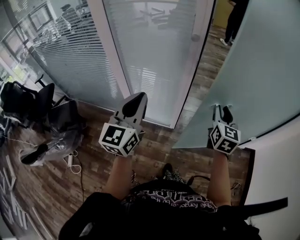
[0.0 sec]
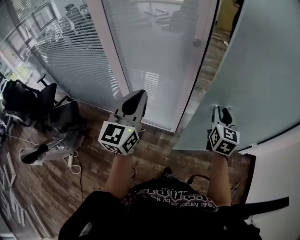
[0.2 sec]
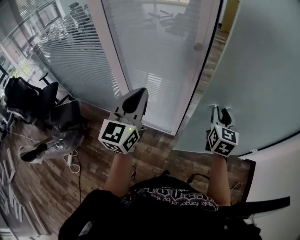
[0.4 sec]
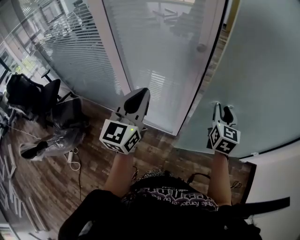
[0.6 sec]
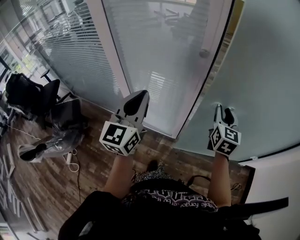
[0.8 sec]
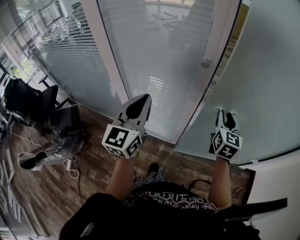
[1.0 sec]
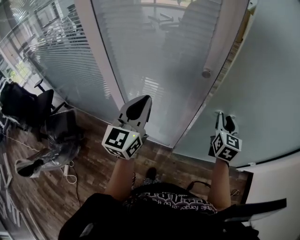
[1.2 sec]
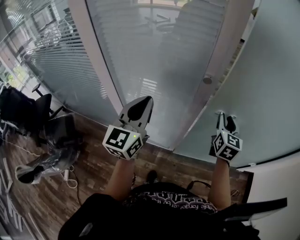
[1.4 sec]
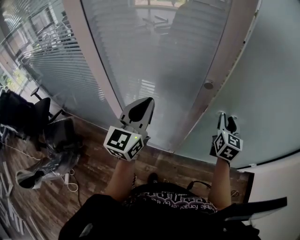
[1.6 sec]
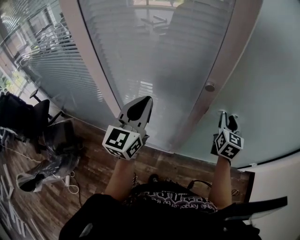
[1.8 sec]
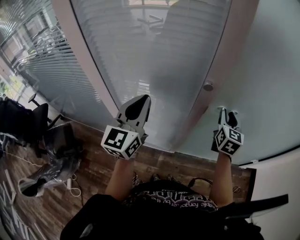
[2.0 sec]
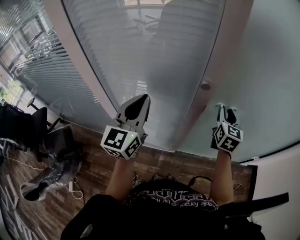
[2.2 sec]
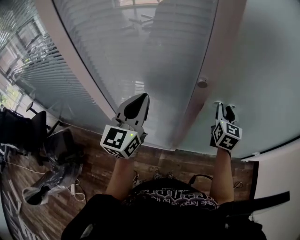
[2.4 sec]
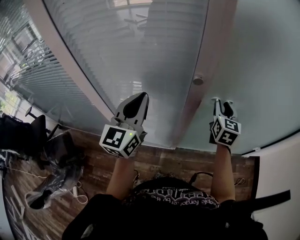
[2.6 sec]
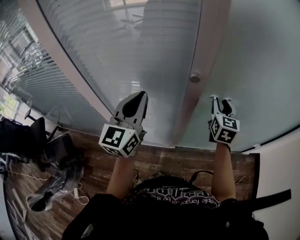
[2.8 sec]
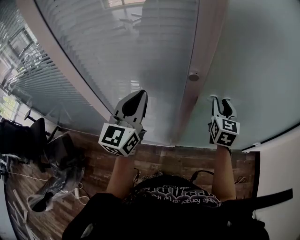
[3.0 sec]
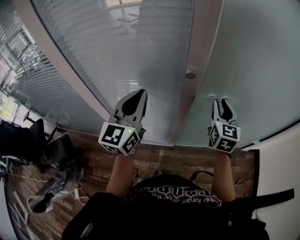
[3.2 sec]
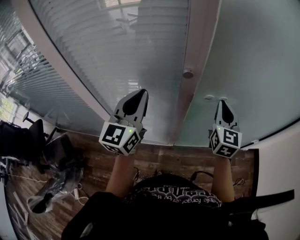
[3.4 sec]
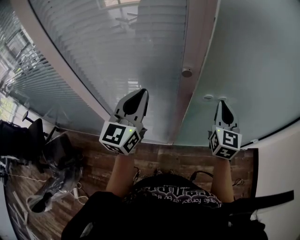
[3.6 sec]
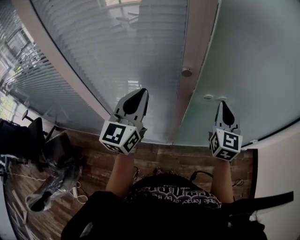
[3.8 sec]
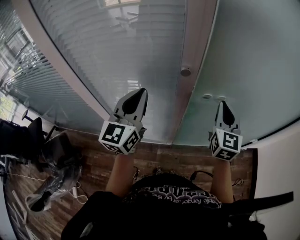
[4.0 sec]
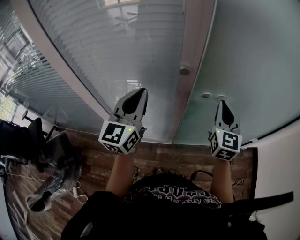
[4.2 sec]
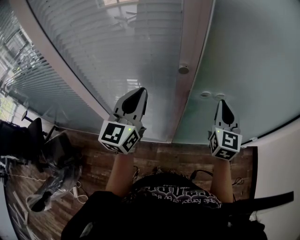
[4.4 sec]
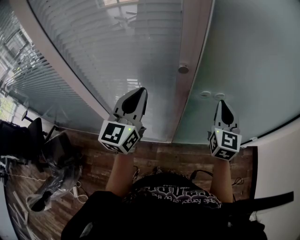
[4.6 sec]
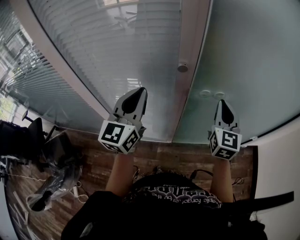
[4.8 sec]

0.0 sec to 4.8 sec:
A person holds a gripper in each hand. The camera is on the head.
0.0 sec to 1.6 sec: The two grippers go approximately 20 cm forward.
1.6 sec to 3.2 sec: The left gripper moves about 5 cm.
3.2 sec to 4.8 sec: The right gripper changes place by about 5 cm, and closes up.

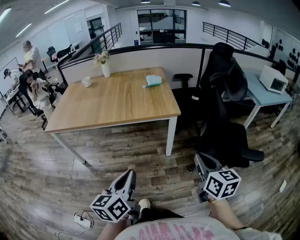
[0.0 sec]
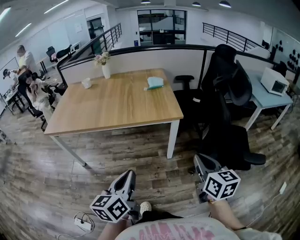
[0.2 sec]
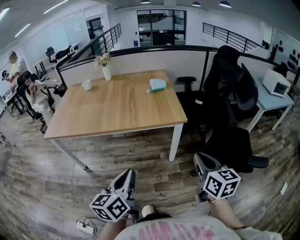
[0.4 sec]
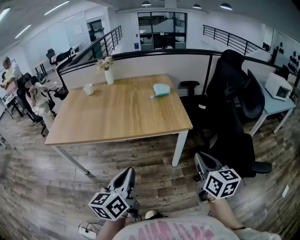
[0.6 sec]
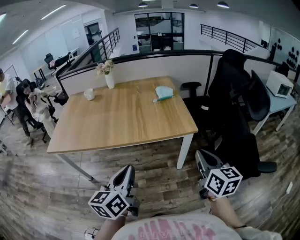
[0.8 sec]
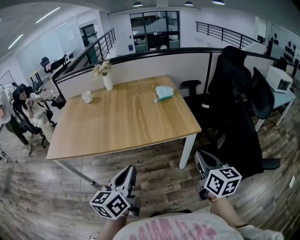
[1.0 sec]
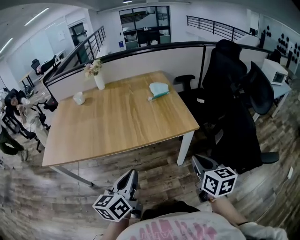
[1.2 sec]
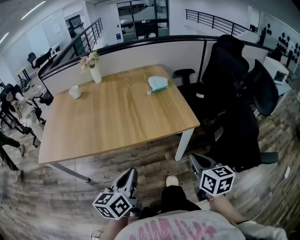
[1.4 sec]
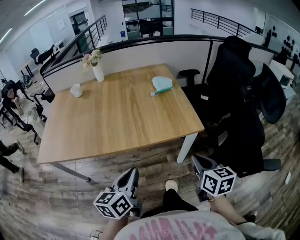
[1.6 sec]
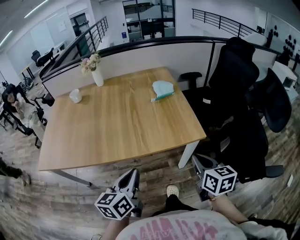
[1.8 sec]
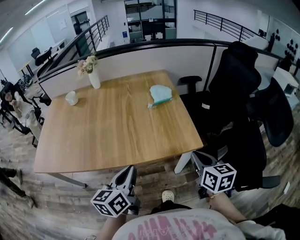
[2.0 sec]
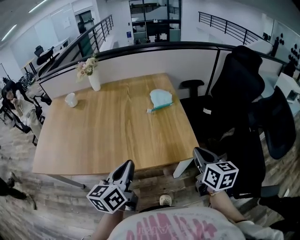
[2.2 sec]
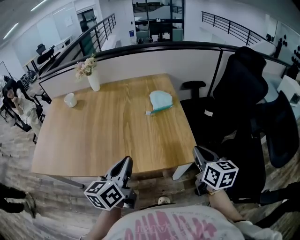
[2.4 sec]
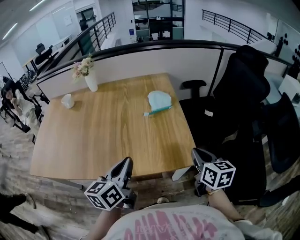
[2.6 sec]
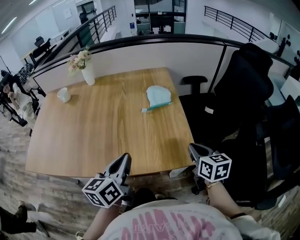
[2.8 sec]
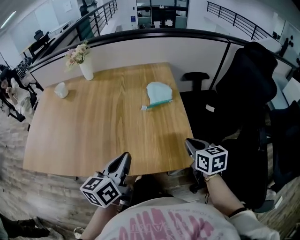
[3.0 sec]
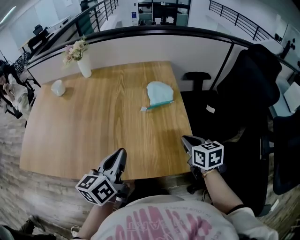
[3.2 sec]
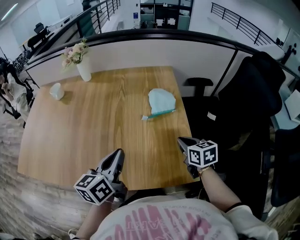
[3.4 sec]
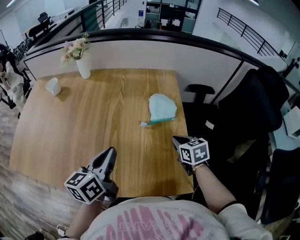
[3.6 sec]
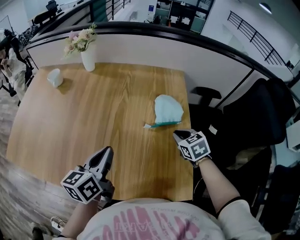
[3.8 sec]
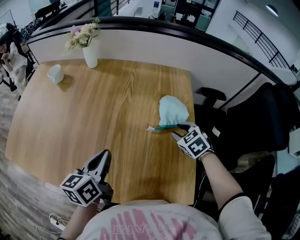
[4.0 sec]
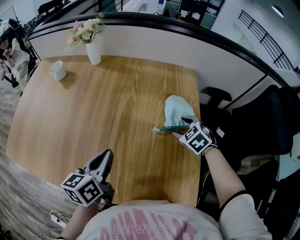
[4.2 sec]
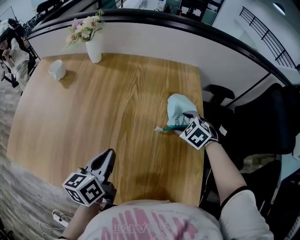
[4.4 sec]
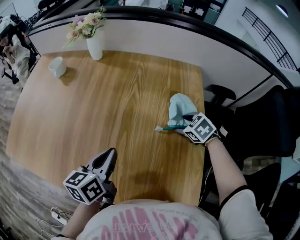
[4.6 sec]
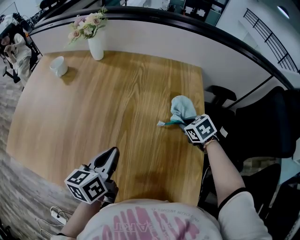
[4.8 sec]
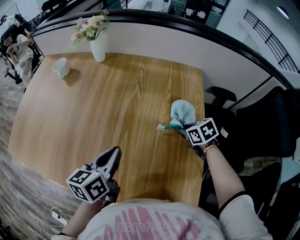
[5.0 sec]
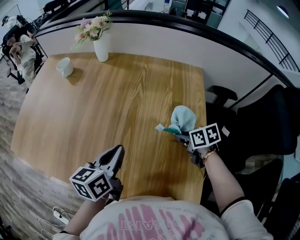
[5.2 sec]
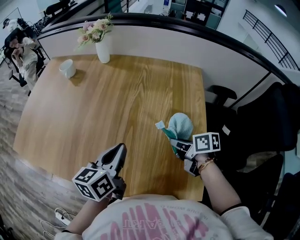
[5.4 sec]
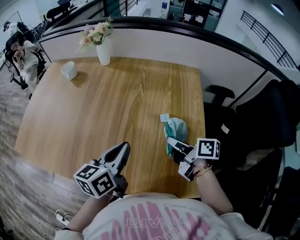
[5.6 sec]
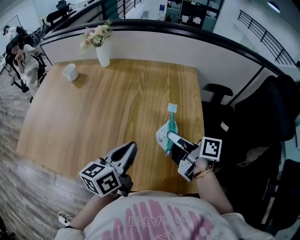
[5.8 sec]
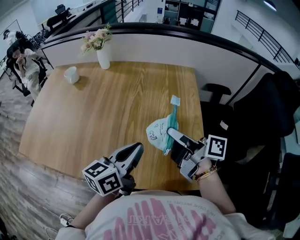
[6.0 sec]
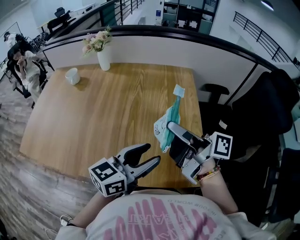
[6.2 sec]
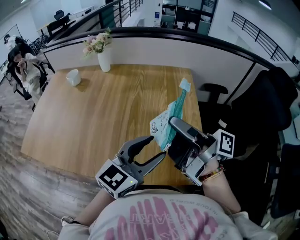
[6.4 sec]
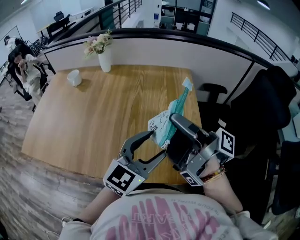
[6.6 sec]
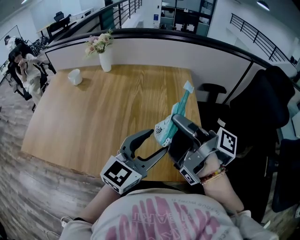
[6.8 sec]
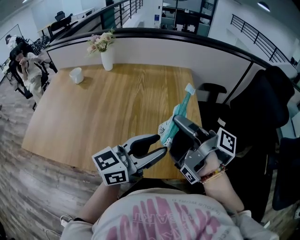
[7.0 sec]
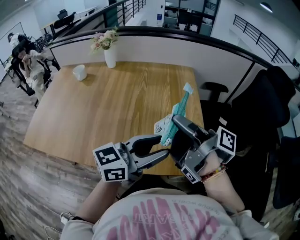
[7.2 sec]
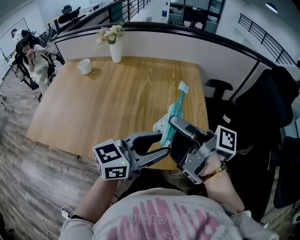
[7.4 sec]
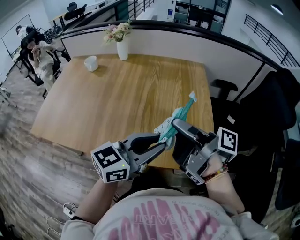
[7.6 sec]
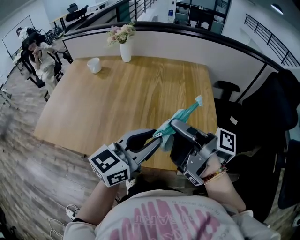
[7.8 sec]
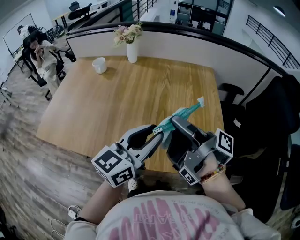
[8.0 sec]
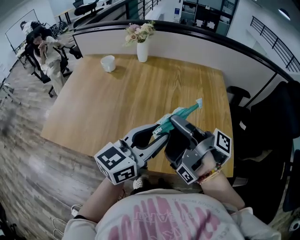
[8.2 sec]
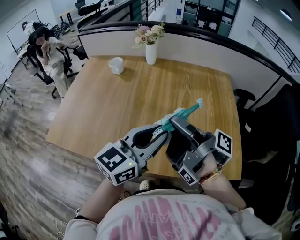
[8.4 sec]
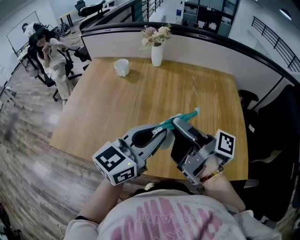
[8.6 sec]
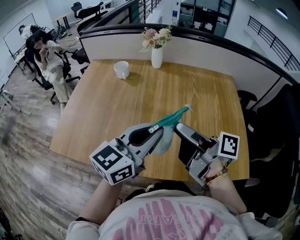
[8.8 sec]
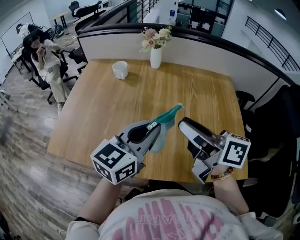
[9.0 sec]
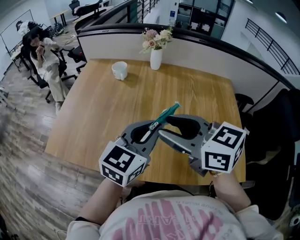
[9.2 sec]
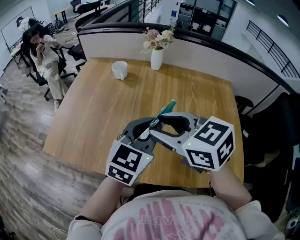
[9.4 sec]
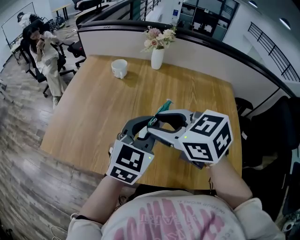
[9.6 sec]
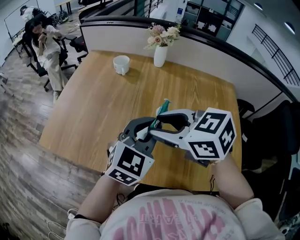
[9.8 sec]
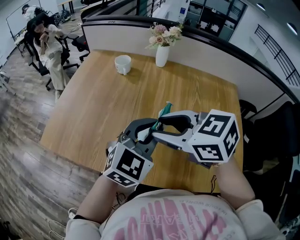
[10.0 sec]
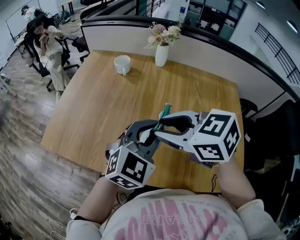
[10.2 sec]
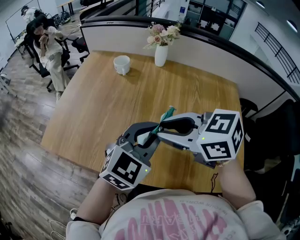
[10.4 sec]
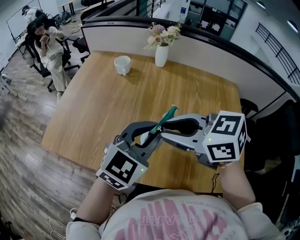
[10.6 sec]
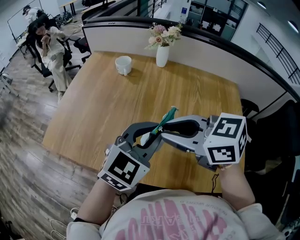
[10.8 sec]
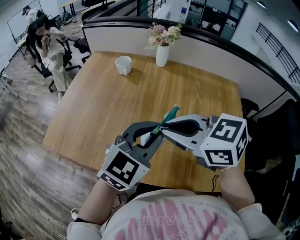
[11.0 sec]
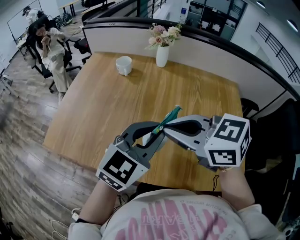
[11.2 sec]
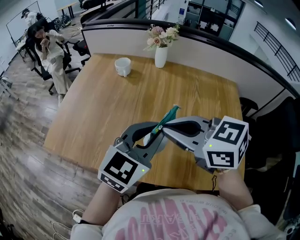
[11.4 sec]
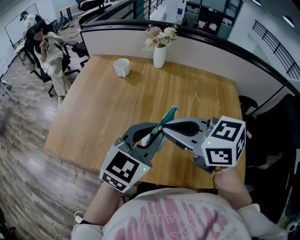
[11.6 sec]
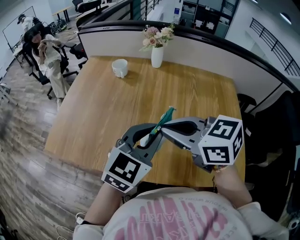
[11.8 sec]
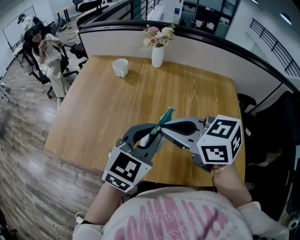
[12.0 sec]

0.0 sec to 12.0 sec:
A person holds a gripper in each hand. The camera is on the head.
0.0 sec to 1.6 sec: The grippers both shift forward and to the left by approximately 30 cm.
1.6 sec to 3.0 sec: The two grippers go some 25 cm forward.
3.0 sec to 4.4 sec: The left gripper is displaced forward and to the left by approximately 20 cm, while the right gripper goes about 30 cm forward, rotates around the line of its fingers by some 60 degrees, counterclockwise from behind, and opens.
4.4 sec to 6.0 sec: The left gripper heads backward, to the right and upward, covering roughly 15 cm, and swivels approximately 20 degrees, while the right gripper shifts some 25 cm upward, backward and to the left, points its fingers approximately 60 degrees further upward, and closes up.
6.0 sec to 7.6 sec: The two grippers go about 10 cm backward and upward. The left gripper swivels about 30 degrees, and opens.
7.6 sec to 9.0 sec: The right gripper travels to the left by roughly 25 cm, rotates around the line of its fingers by roughly 40 degrees, counterclockwise from behind, and opens. Meanwhile the left gripper travels to the left and forward by about 30 cm.
9.0 sec to 10.4 sec: The left gripper turns by about 30 degrees. Meanwhile the right gripper travels to the left by approximately 5 cm, and points its fingers about 30 degrees further downward.
10.4 sec to 12.0 sec: The right gripper closes its fingers.

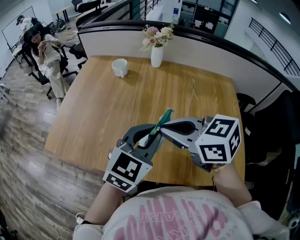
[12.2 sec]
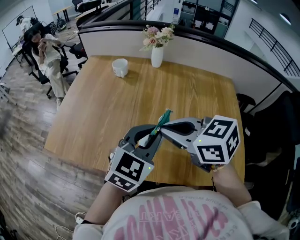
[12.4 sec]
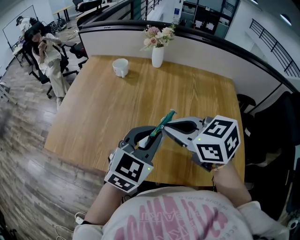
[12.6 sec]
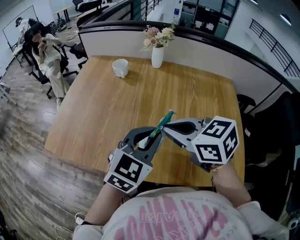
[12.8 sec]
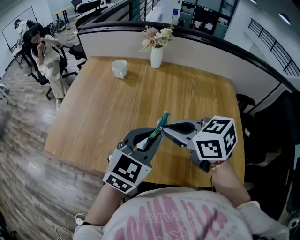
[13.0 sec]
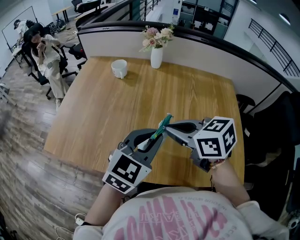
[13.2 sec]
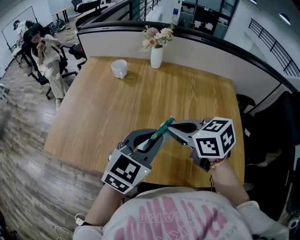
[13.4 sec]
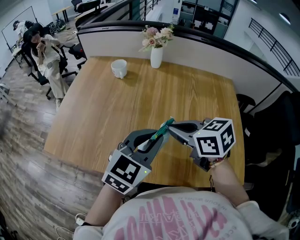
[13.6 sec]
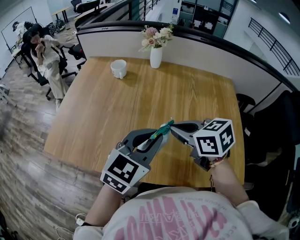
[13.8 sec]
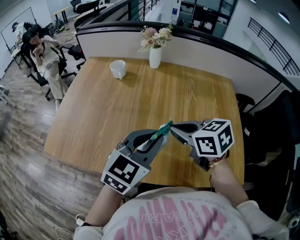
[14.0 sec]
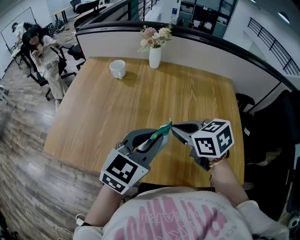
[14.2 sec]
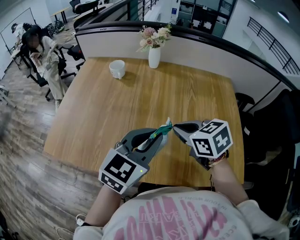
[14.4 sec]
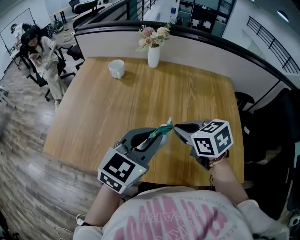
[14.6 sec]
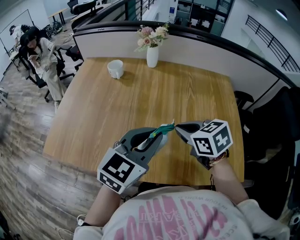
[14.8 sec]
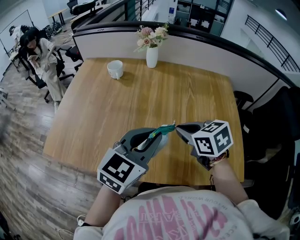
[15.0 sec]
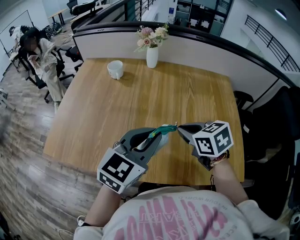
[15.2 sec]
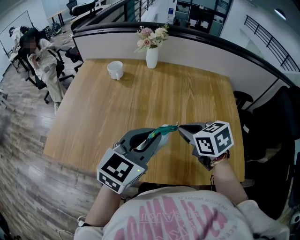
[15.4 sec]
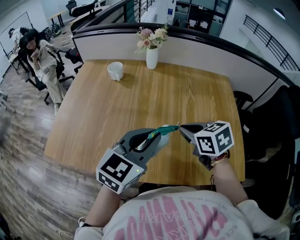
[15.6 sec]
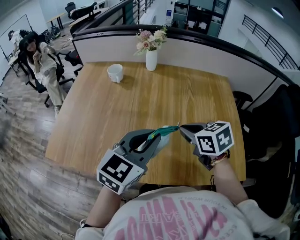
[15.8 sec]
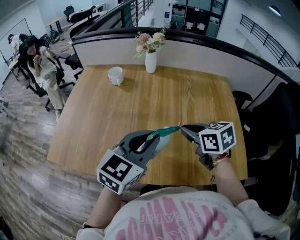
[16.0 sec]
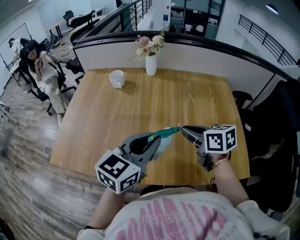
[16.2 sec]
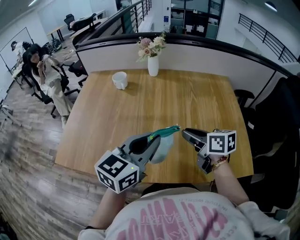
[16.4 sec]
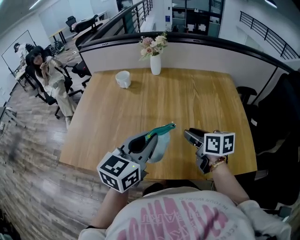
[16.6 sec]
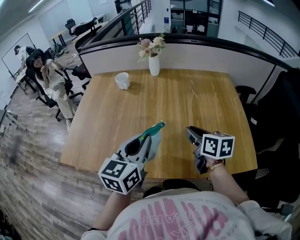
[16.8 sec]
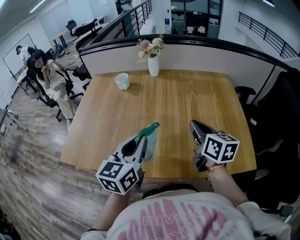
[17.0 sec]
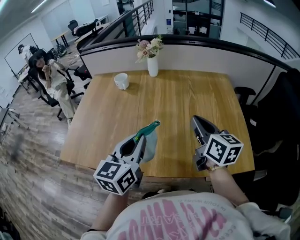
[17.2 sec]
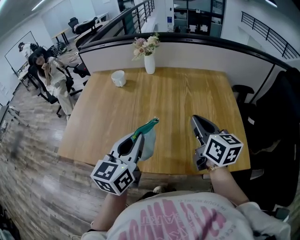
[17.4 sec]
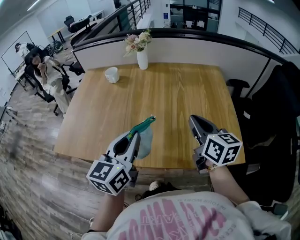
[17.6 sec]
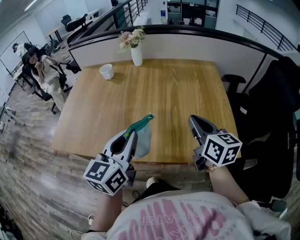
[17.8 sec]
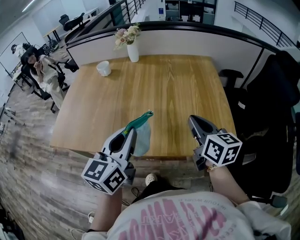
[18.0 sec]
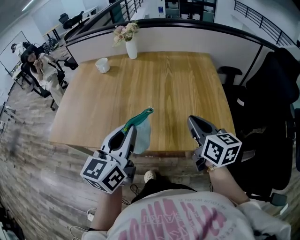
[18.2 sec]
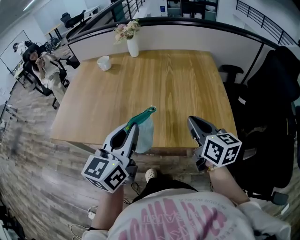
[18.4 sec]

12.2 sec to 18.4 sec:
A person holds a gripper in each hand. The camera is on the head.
12.2 sec to 13.8 sec: The right gripper heads downward and to the right, covering some 10 cm.
13.8 sec to 15.4 sec: The right gripper is displaced to the right by roughly 5 cm.
15.4 sec to 16.8 sec: The left gripper shifts approximately 5 cm to the left, and turns by some 20 degrees. Meanwhile the right gripper rotates roughly 40 degrees.
16.8 sec to 18.4 sec: The grippers both shift backward and to the right by approximately 20 cm.
